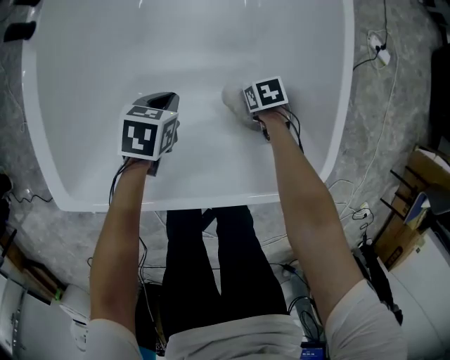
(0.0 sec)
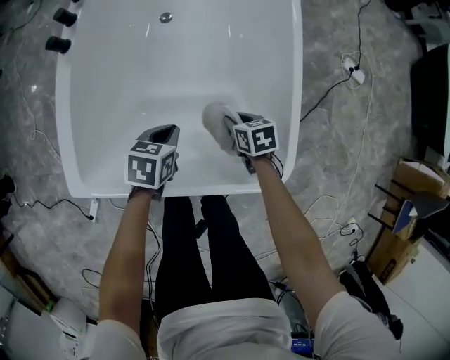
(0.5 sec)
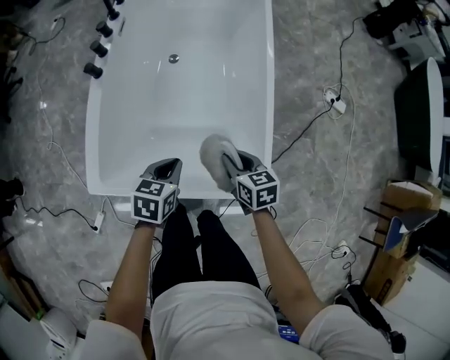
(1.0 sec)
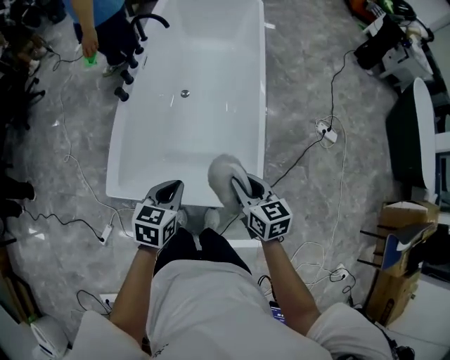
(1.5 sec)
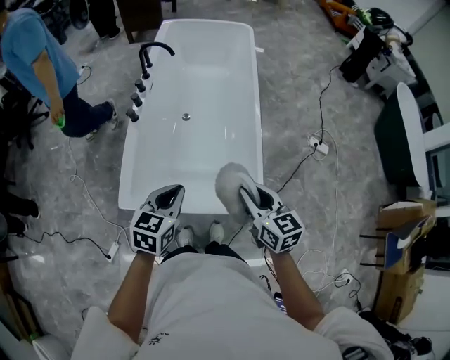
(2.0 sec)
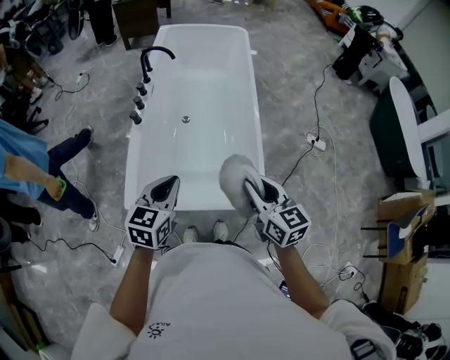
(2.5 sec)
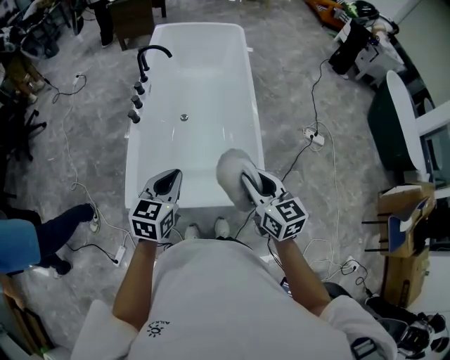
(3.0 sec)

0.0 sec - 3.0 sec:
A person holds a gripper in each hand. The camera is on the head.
0.0 sec - 1.5 sec: Both grippers travel together upward, approximately 50 cm. The right gripper tilts its fingers approximately 40 degrees upward, while the left gripper changes its angle by approximately 30 degrees.
1.5 sec - 3.0 sec: The left gripper travels upward and to the left by some 15 cm; the right gripper shifts roughly 15 cm upward.

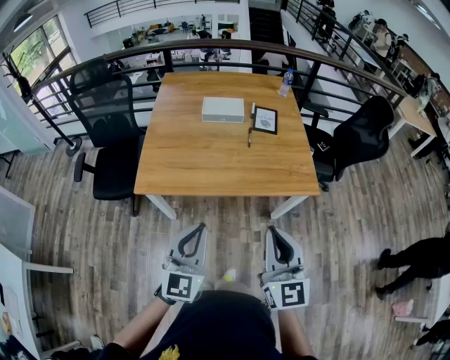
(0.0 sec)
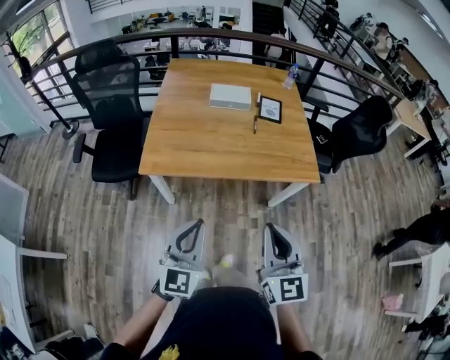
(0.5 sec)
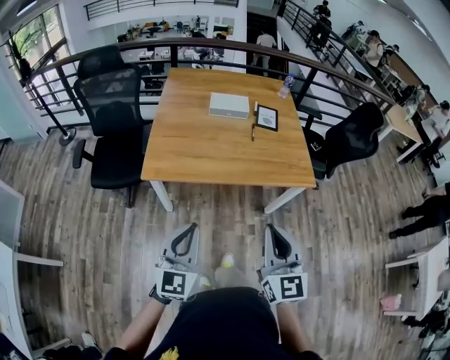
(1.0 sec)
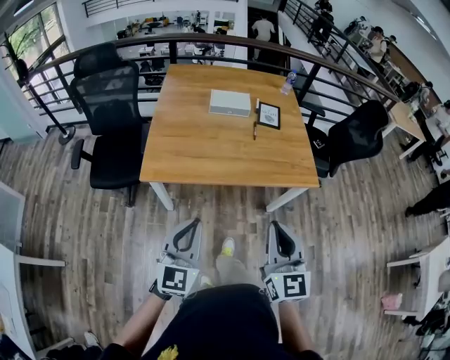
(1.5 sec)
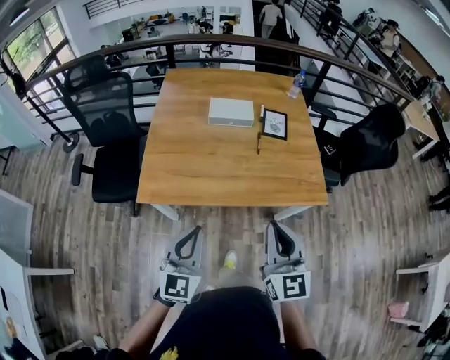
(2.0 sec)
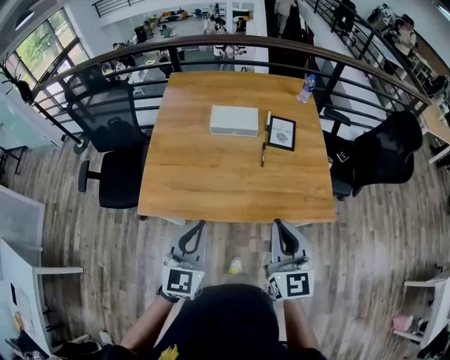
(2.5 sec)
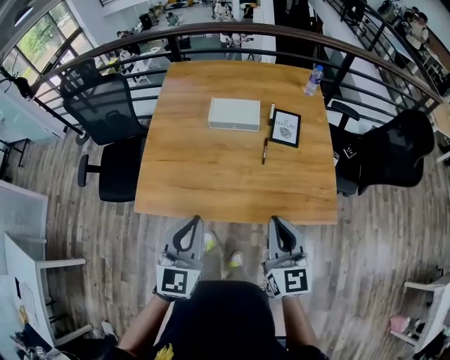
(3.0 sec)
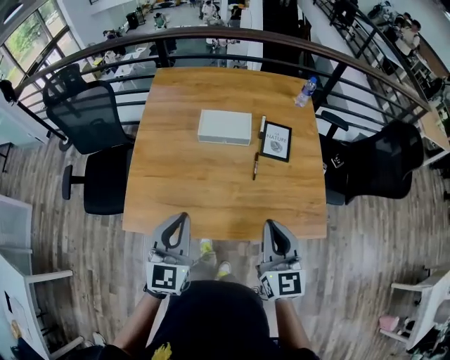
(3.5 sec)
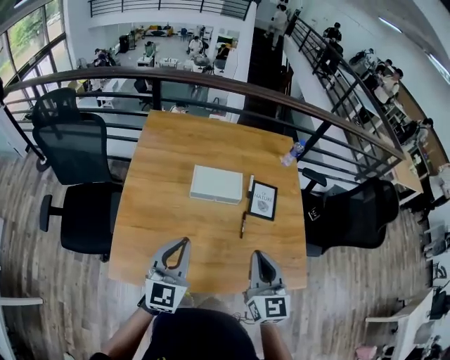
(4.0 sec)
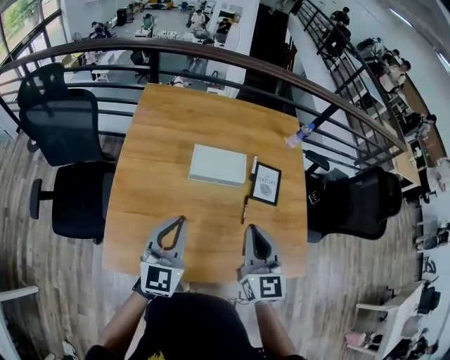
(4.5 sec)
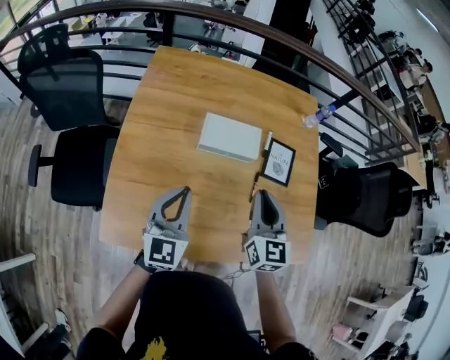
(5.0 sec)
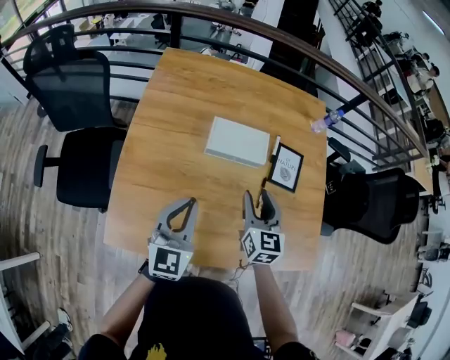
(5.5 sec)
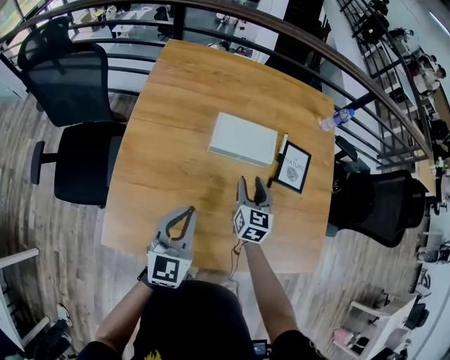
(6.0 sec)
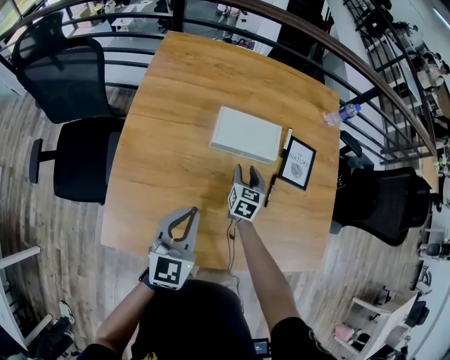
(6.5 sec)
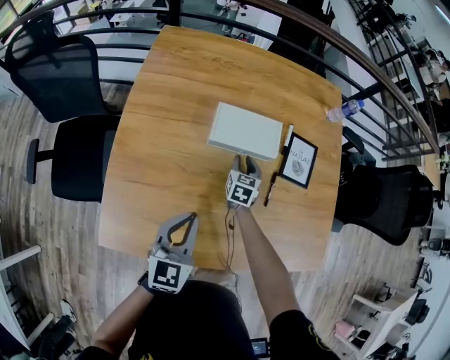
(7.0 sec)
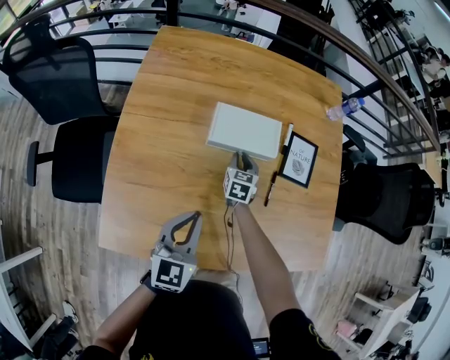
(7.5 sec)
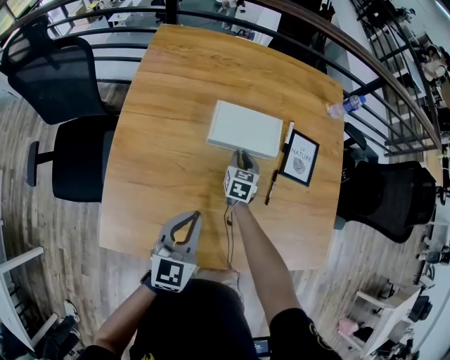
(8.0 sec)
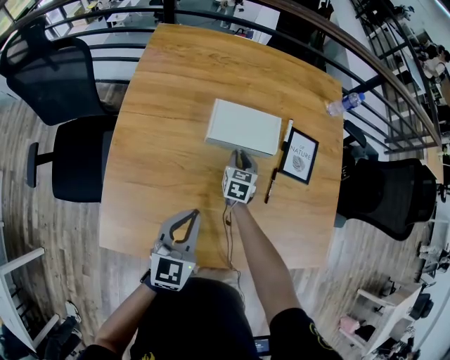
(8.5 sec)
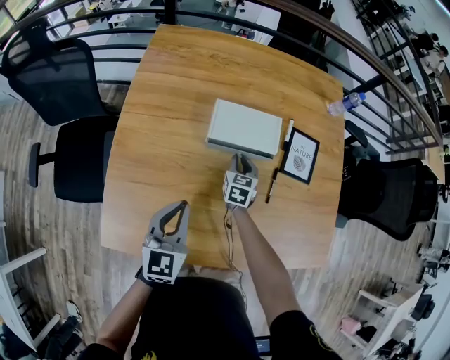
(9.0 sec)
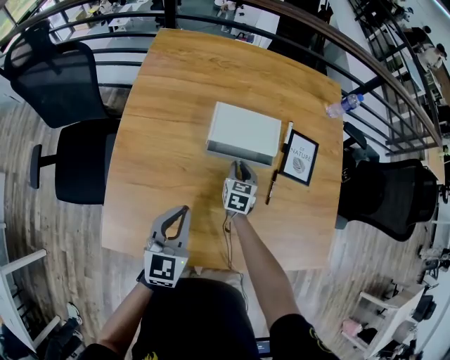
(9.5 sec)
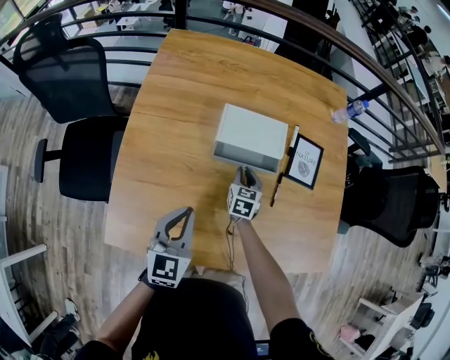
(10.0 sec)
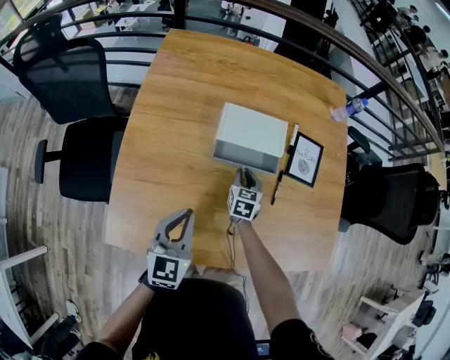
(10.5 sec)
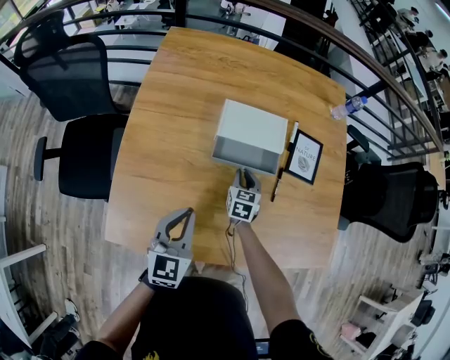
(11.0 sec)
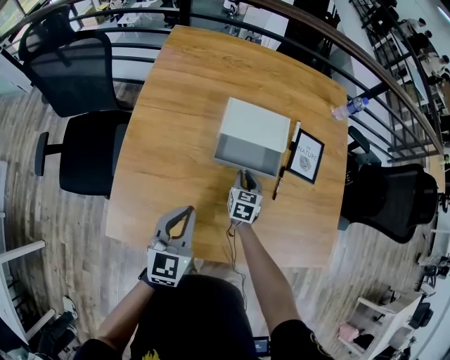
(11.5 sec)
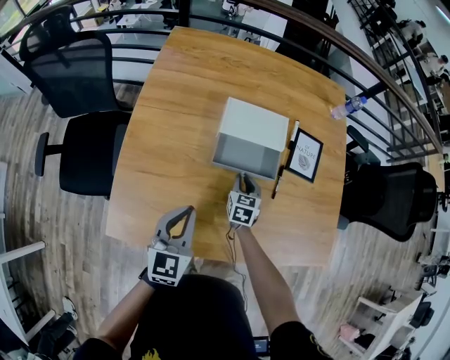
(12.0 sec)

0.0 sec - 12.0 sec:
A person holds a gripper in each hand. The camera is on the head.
0.0 sec - 2.0 sec: Both grippers move forward and to the left, approximately 10 cm.
2.0 sec - 4.0 sec: The grippers both shift forward by approximately 35 cm.
4.0 sec - 6.0 sec: The left gripper is displaced downward and forward by approximately 15 cm; the right gripper travels downward and forward by approximately 35 cm, and opens its fingers.
6.0 sec - 8.0 sec: The left gripper goes roughly 5 cm downward, while the right gripper travels downward and forward by about 15 cm, and closes its fingers.
8.0 sec - 10.0 sec: The right gripper travels backward by roughly 5 cm.
10.0 sec - 12.0 sec: The right gripper travels backward by roughly 5 cm.

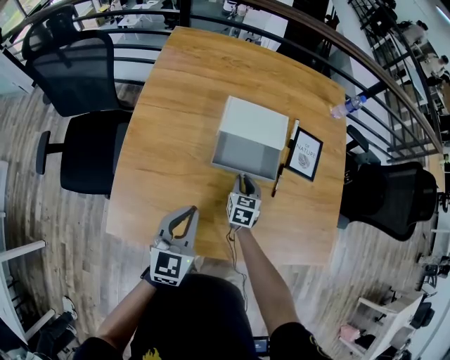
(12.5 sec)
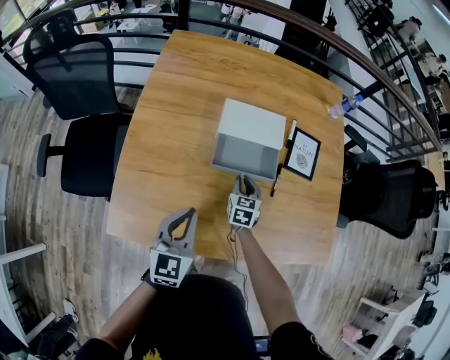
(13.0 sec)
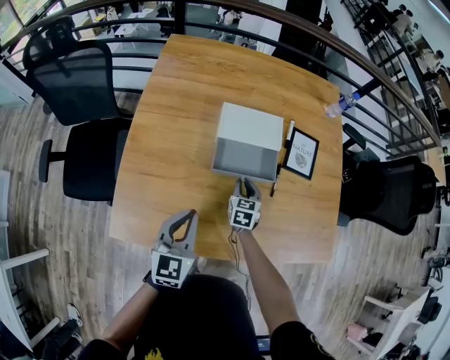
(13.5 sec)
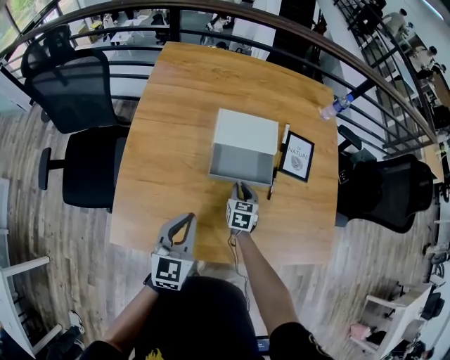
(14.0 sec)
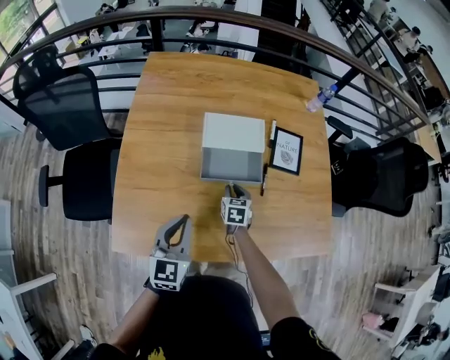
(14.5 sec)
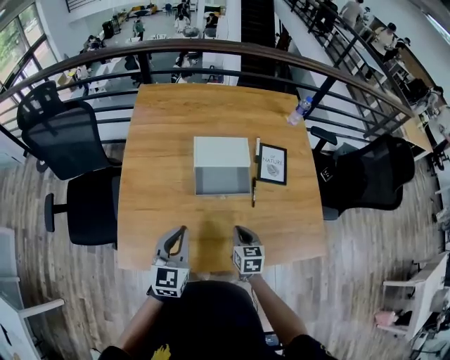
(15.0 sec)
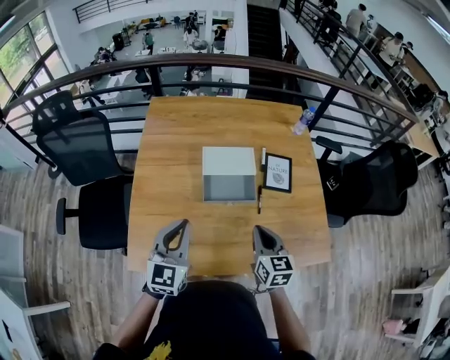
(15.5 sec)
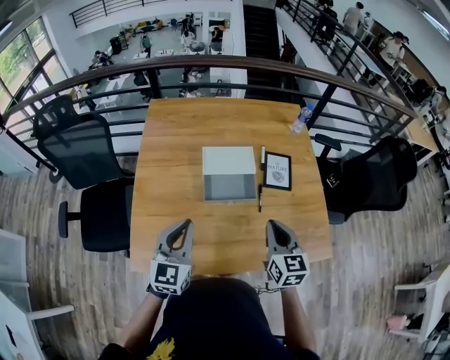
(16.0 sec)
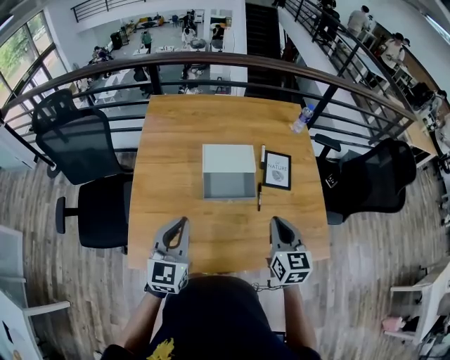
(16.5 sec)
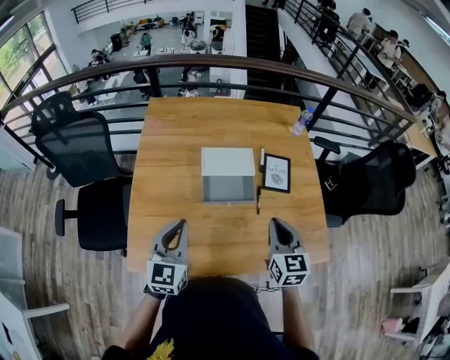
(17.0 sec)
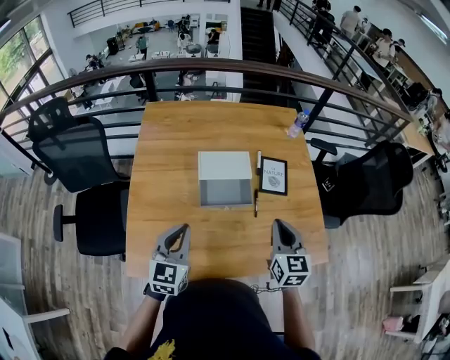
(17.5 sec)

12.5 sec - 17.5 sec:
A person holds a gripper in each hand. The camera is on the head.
12.5 sec - 15.0 sec: The right gripper goes some 20 cm backward, upward and to the right; the left gripper is displaced upward by approximately 5 cm.
15.0 sec - 17.5 sec: The right gripper travels upward and to the right by roughly 20 cm, and rotates roughly 20 degrees.

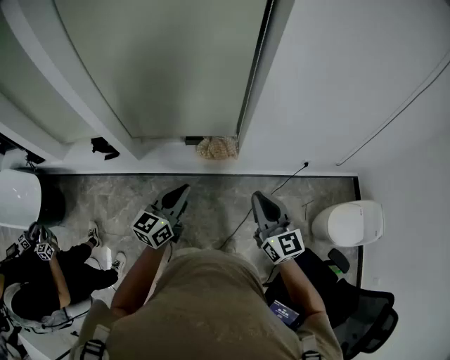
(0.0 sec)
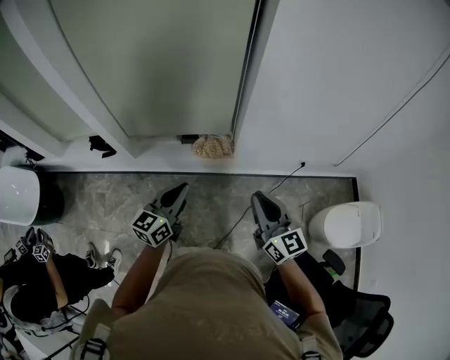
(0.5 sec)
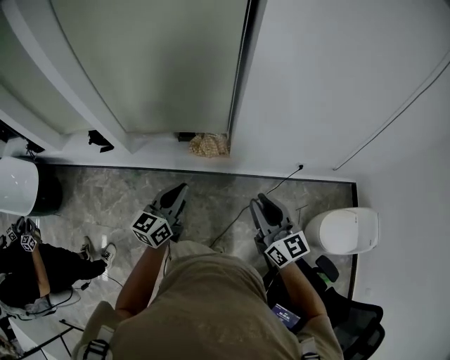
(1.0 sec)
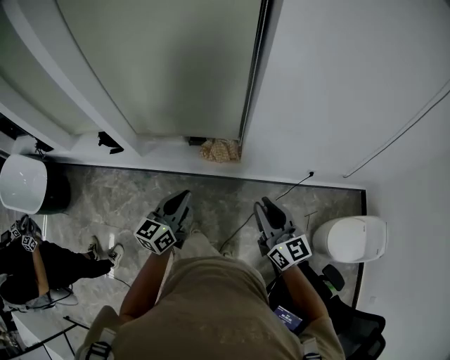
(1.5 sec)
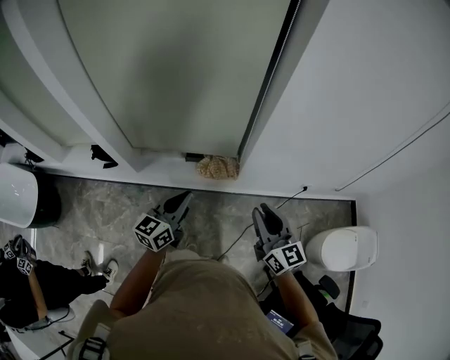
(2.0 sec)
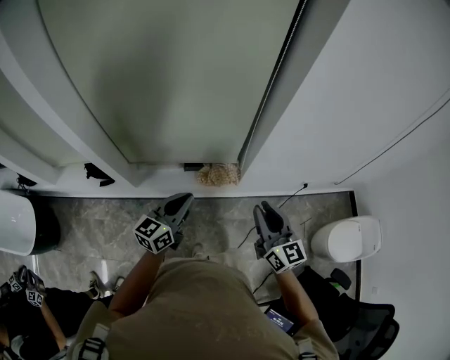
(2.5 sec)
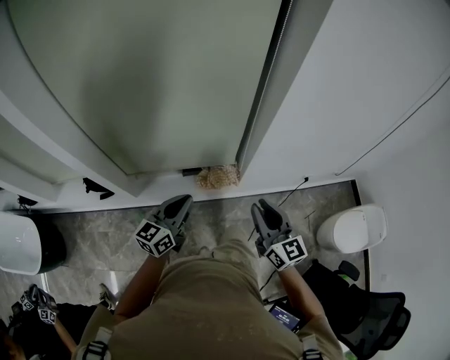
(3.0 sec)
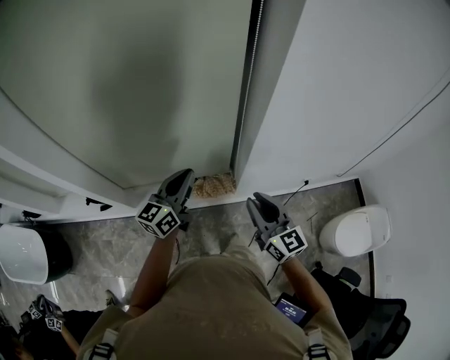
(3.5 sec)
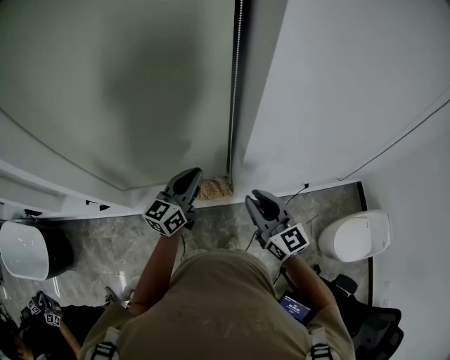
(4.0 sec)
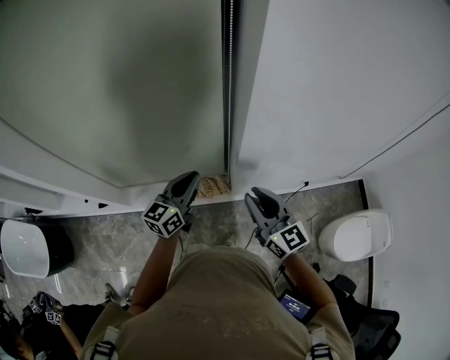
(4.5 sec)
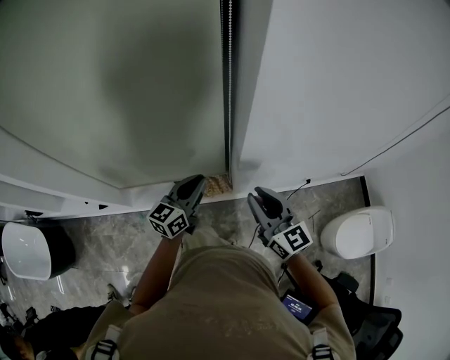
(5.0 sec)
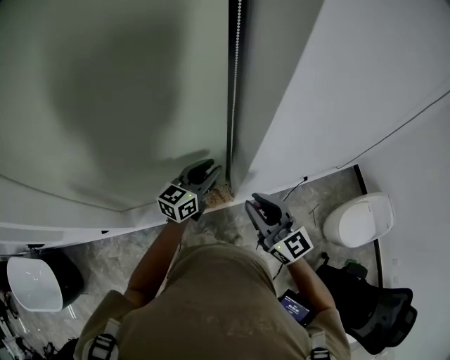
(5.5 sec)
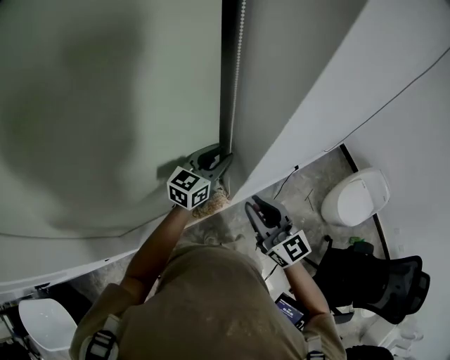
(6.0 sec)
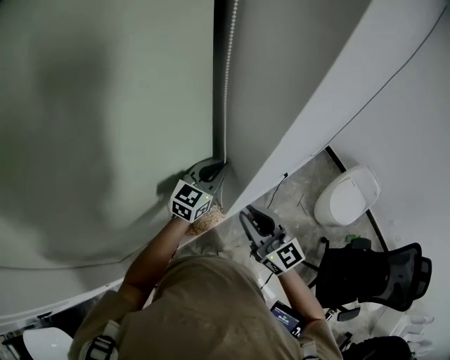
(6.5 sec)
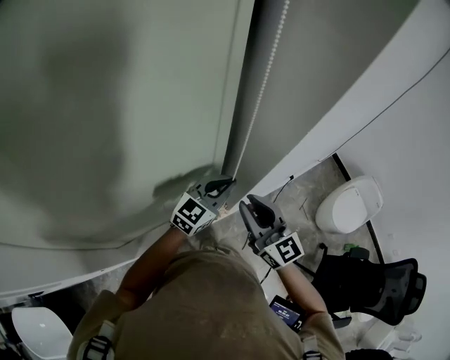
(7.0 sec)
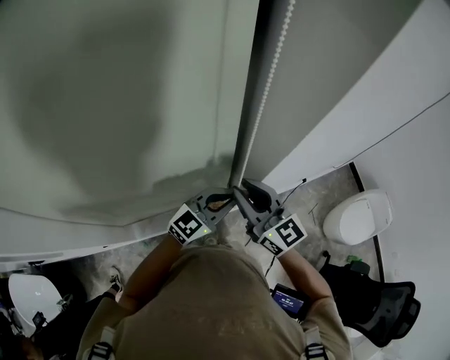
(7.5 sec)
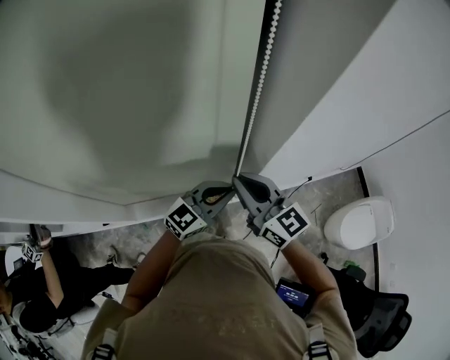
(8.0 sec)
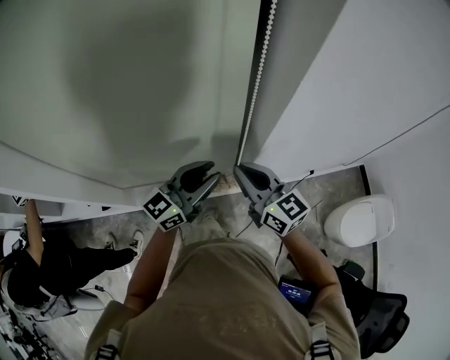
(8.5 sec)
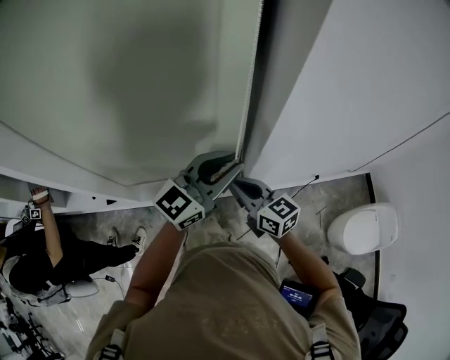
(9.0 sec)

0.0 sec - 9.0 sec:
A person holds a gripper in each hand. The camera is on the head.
0.0 sec - 2.0 sec: Both grippers move forward, approximately 10 cm.
2.0 sec - 4.5 sec: The grippers both shift forward by some 25 cm.
4.5 sec - 7.0 sec: The right gripper moves roughly 15 cm, and swivels roughly 20 degrees; the left gripper swivels about 50 degrees, and opens, then closes once more.
7.0 sec - 9.0 sec: The left gripper heads upward, covering roughly 15 cm, and changes its angle by approximately 20 degrees. The right gripper moves some 10 cm, and swivels about 40 degrees.
